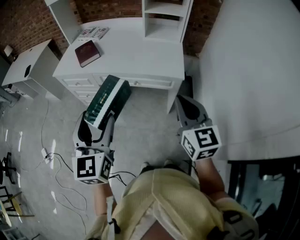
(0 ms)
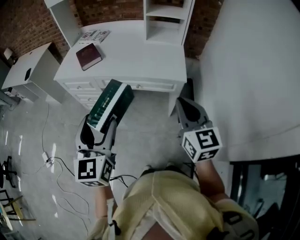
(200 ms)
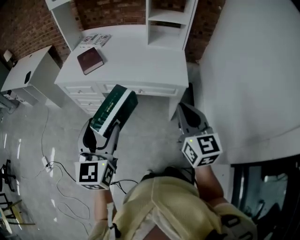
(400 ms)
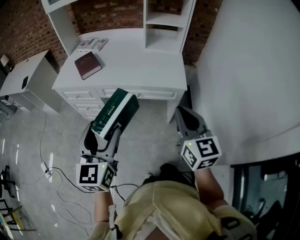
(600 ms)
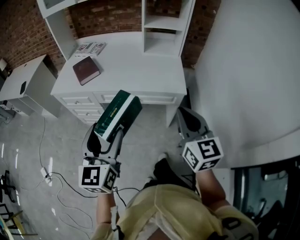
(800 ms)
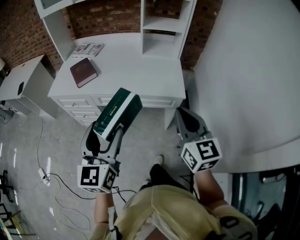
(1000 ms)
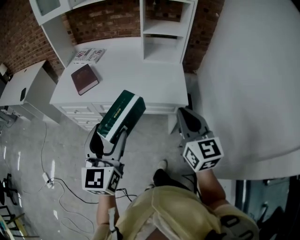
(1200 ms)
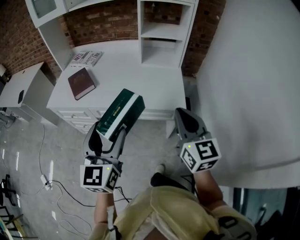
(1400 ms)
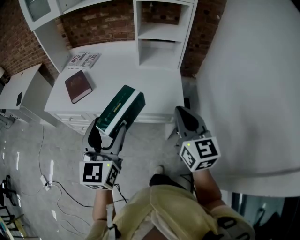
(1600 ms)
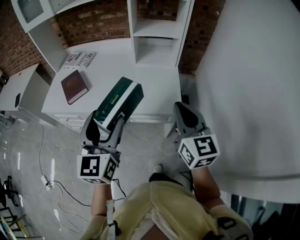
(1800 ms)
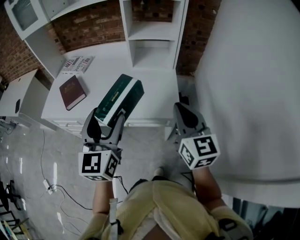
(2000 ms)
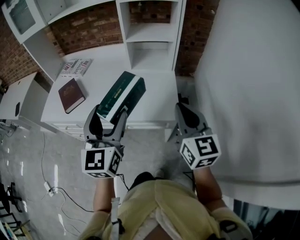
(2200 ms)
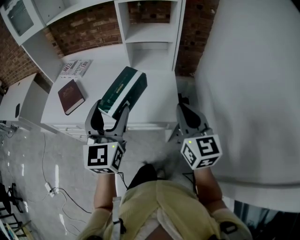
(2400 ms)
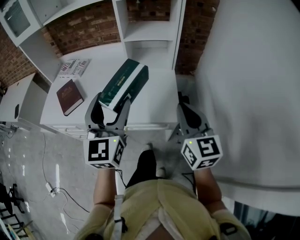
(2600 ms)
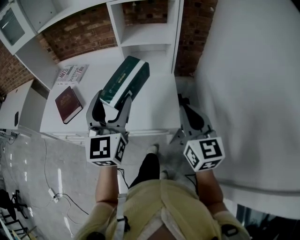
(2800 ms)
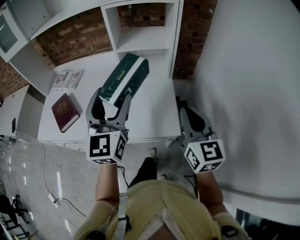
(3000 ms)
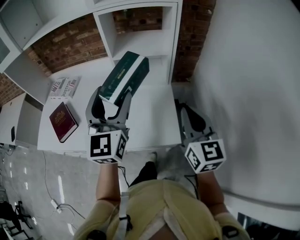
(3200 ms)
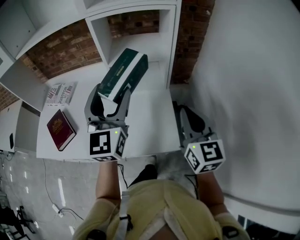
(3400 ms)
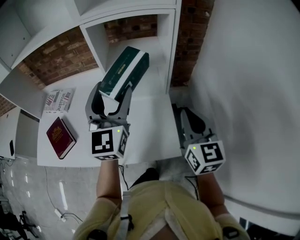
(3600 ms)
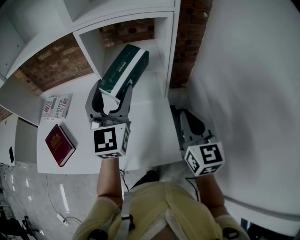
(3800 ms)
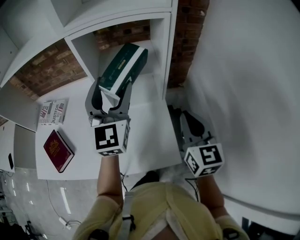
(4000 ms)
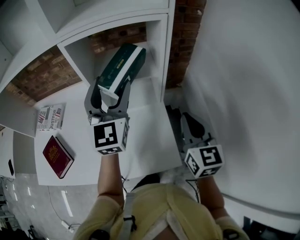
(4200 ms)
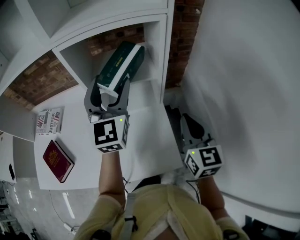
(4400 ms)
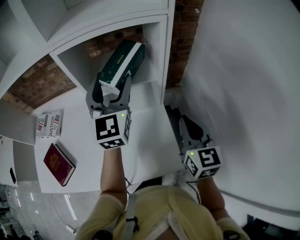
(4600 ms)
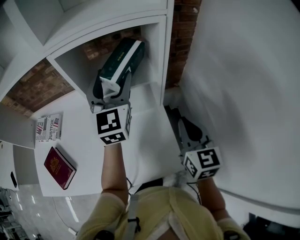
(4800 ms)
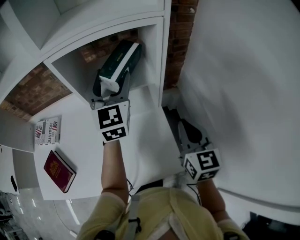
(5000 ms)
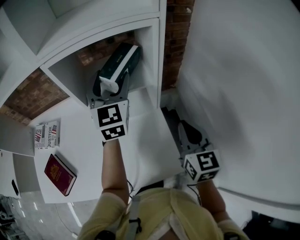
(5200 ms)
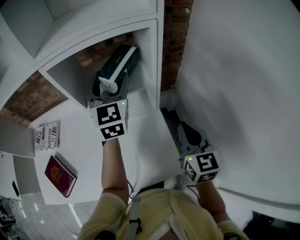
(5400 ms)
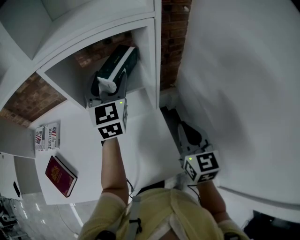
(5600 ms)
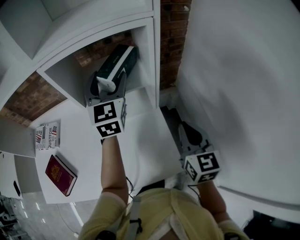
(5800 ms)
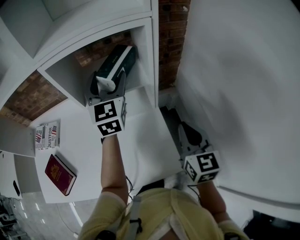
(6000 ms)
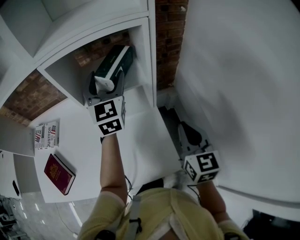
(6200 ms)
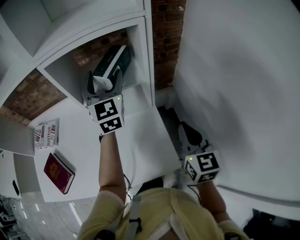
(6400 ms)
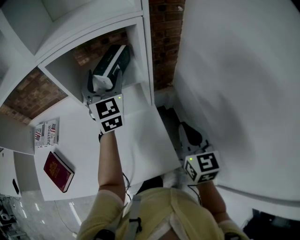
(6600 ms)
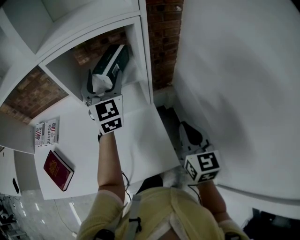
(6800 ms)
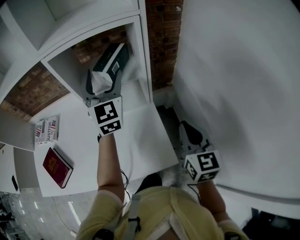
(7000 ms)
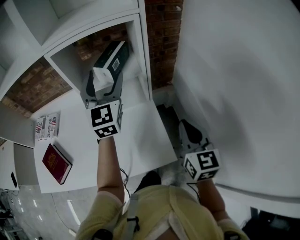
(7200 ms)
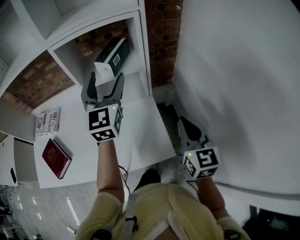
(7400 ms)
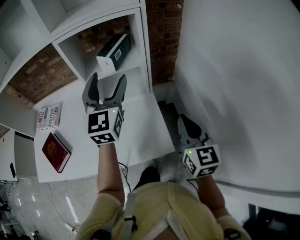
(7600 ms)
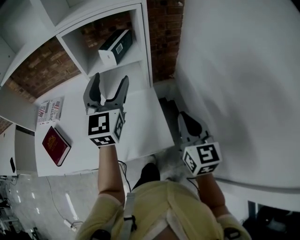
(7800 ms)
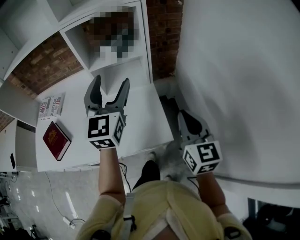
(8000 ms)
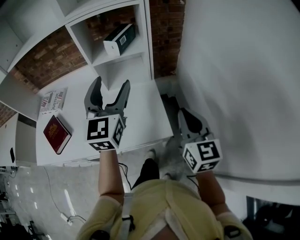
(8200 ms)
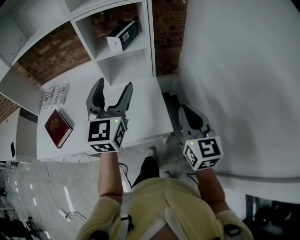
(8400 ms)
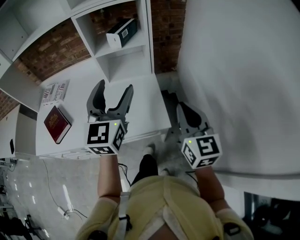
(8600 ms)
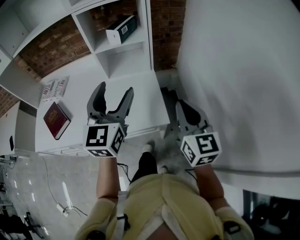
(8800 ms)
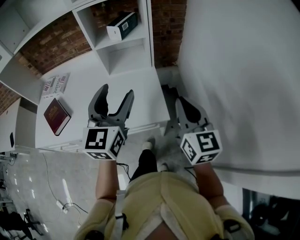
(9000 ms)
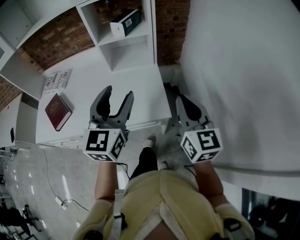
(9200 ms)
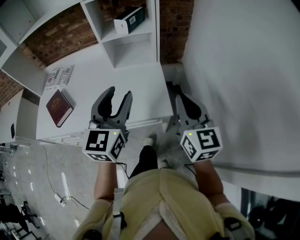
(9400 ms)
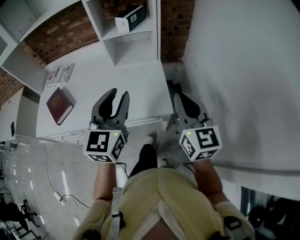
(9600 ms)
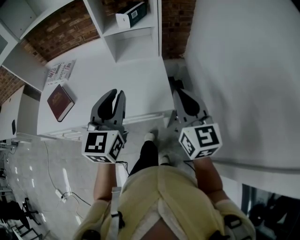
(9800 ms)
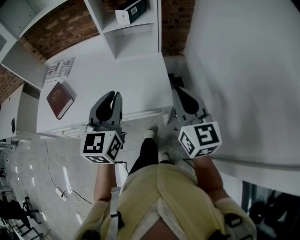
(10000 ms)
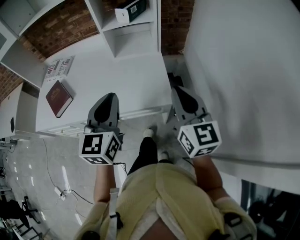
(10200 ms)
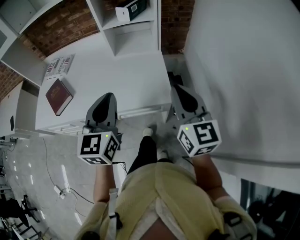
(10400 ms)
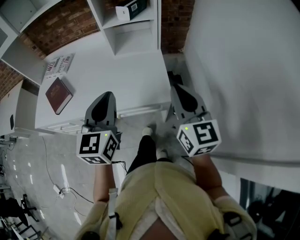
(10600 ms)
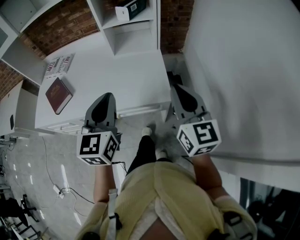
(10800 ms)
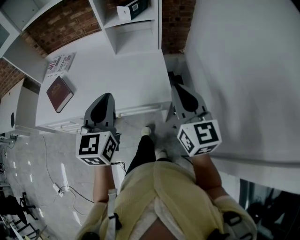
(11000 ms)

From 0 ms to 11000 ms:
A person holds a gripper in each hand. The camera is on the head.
From 0 ms to 1600 ms: Both grippers travel together forward, some 15 cm.
From 1600 ms to 3200 ms: The left gripper travels forward by roughly 30 cm. Meanwhile the right gripper heads forward and to the right, covering some 20 cm.
From 3200 ms to 4800 ms: The left gripper goes roughly 25 cm forward. The right gripper moves forward, some 15 cm.
From 4800 ms to 6200 ms: The grippers move only a little.
From 6200 ms to 7800 ms: The right gripper heads backward, covering approximately 10 cm. The left gripper goes approximately 20 cm backward.
From 7800 ms to 9400 ms: The left gripper shifts some 20 cm backward, and closes its fingers. Meanwhile the right gripper travels backward by some 10 cm.
From 9400 ms to 11000 ms: The left gripper travels backward by about 5 cm, and closes its fingers.

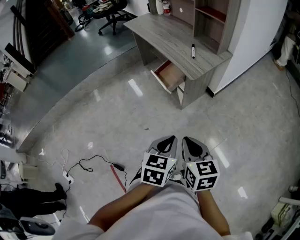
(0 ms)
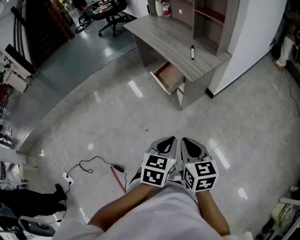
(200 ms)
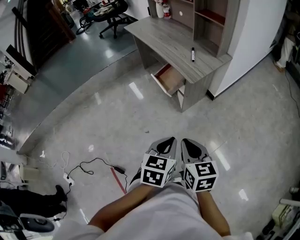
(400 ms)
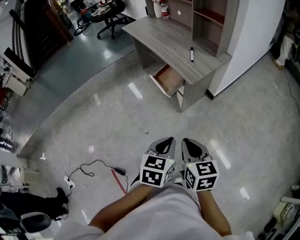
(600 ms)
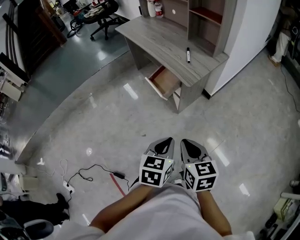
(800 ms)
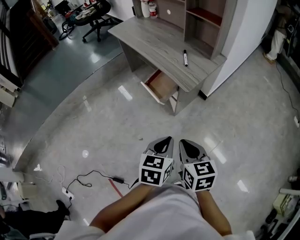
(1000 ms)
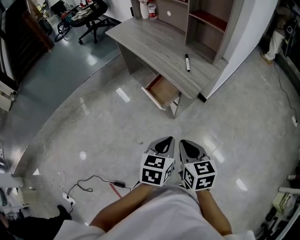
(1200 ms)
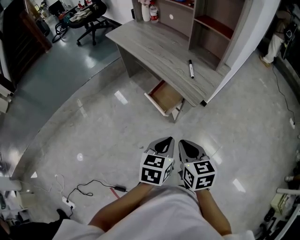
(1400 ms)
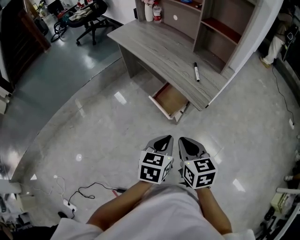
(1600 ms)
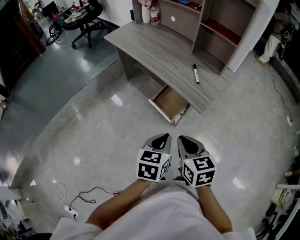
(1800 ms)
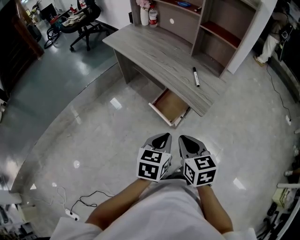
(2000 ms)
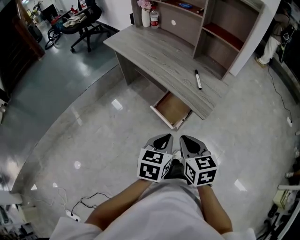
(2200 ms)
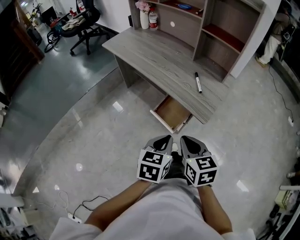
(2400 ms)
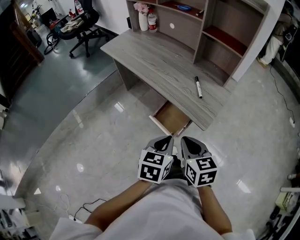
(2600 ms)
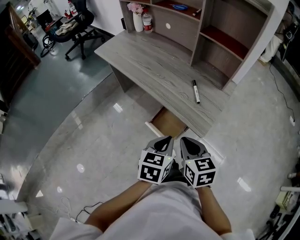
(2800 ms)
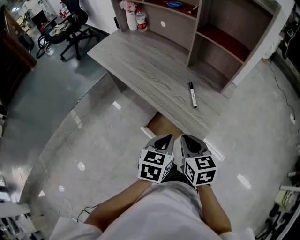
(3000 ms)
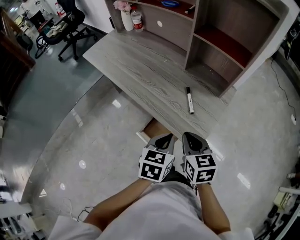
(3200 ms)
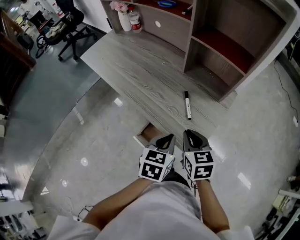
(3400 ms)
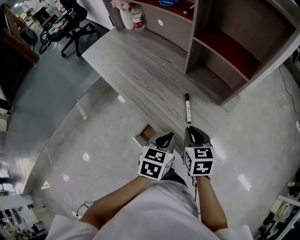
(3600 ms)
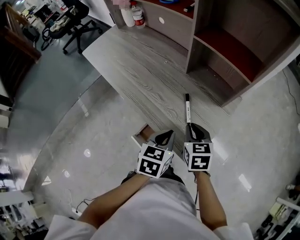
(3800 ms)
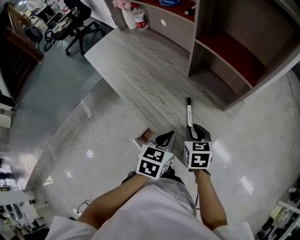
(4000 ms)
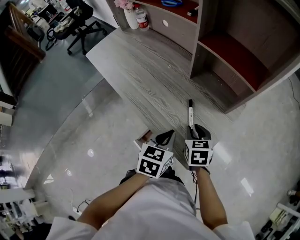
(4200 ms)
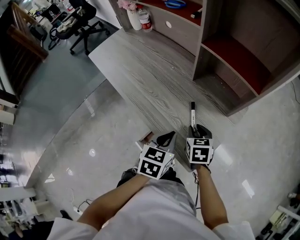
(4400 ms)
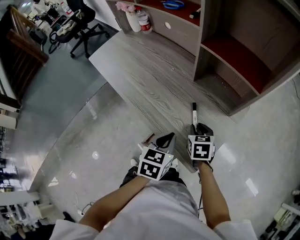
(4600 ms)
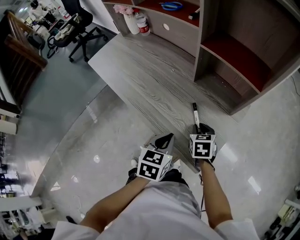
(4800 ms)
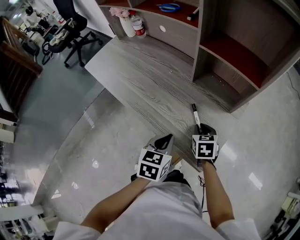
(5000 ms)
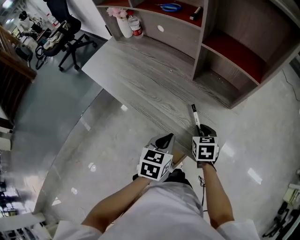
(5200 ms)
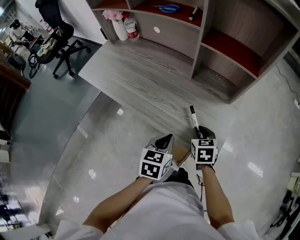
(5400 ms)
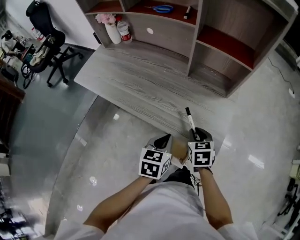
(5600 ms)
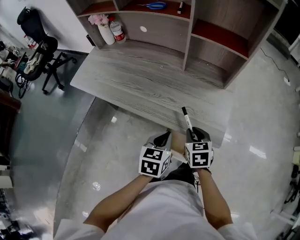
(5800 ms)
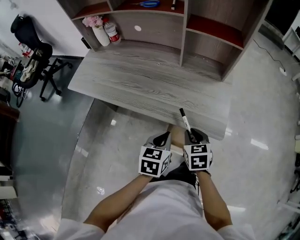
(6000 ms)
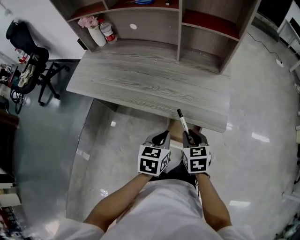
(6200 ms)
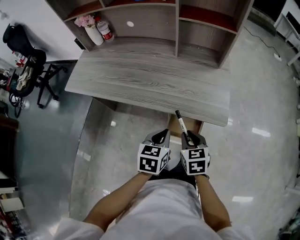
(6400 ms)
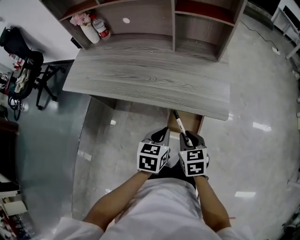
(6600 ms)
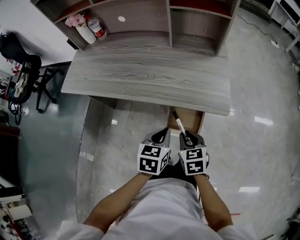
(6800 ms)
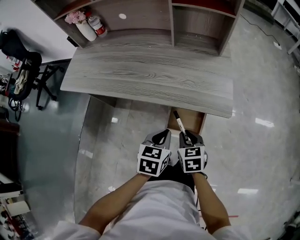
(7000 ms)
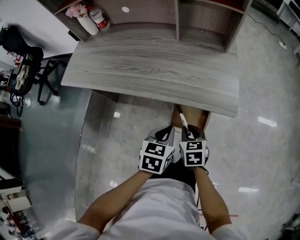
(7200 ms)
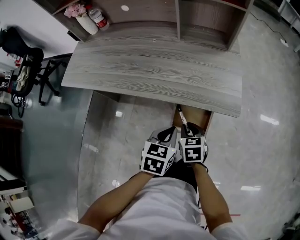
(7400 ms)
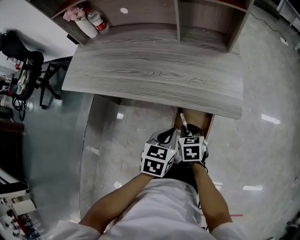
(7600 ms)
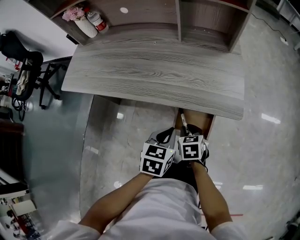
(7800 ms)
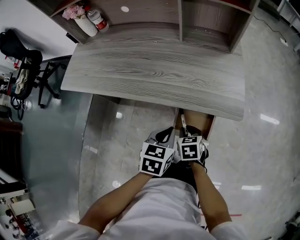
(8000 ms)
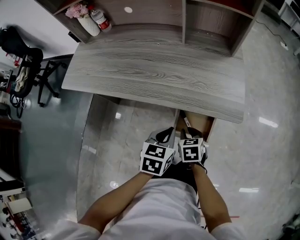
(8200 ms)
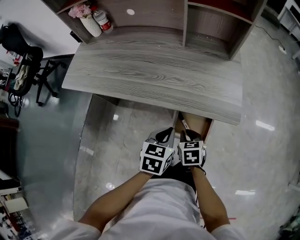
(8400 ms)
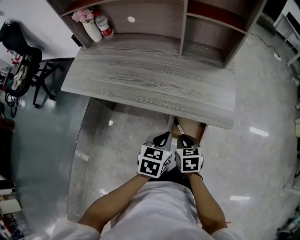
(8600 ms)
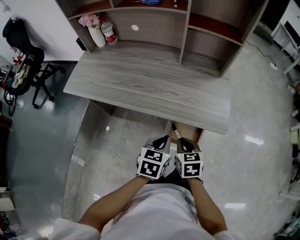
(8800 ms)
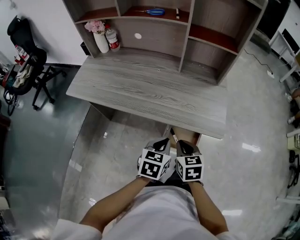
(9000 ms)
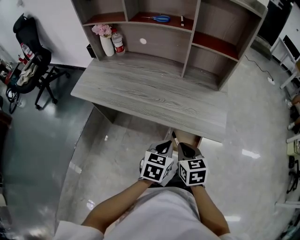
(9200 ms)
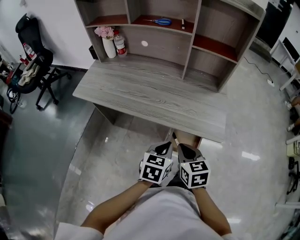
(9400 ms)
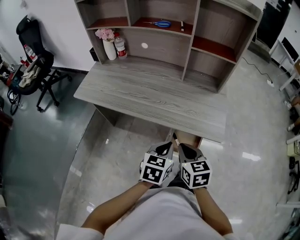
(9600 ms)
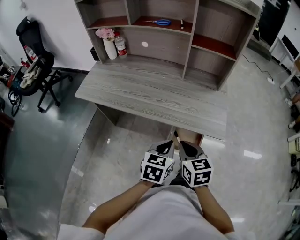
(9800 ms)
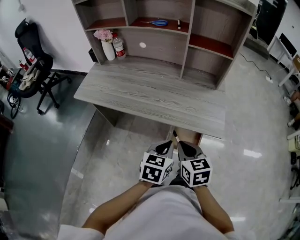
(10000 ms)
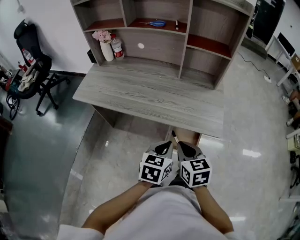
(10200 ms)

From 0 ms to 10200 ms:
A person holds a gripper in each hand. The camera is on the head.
From 0 ms to 1400 ms: The left gripper is displaced forward by some 15 cm, while the right gripper is displaced forward and to the left by about 20 cm.
From 1400 ms to 3000 ms: The two grippers go approximately 25 cm forward.
From 3000 ms to 4400 ms: The left gripper travels forward by about 15 cm, while the right gripper is displaced forward and downward by about 20 cm.
From 4400 ms to 5800 ms: The right gripper goes roughly 15 cm backward and to the left; the left gripper travels to the left and backward by approximately 10 cm.
From 5800 ms to 7200 ms: The right gripper shifts roughly 15 cm backward and downward; the left gripper heads downward and backward, covering about 10 cm.
From 7200 ms to 8800 ms: The right gripper shifts about 5 cm upward.
From 8800 ms to 10200 ms: The left gripper shifts some 5 cm upward. Meanwhile the right gripper heads upward, covering some 10 cm.

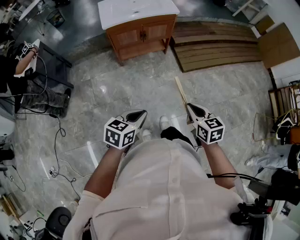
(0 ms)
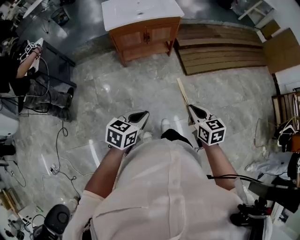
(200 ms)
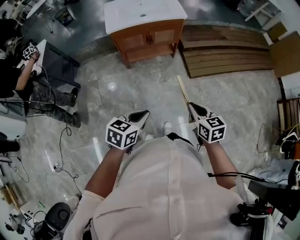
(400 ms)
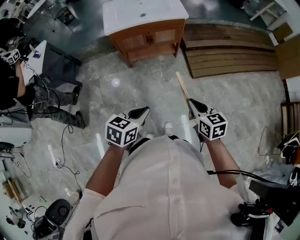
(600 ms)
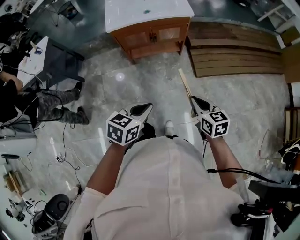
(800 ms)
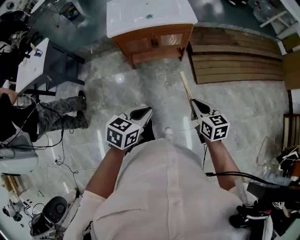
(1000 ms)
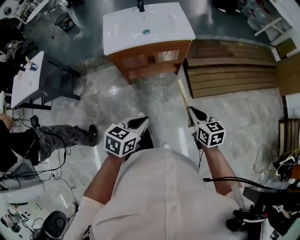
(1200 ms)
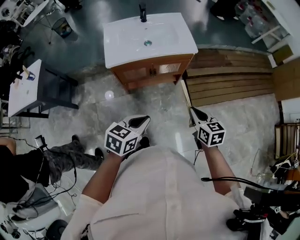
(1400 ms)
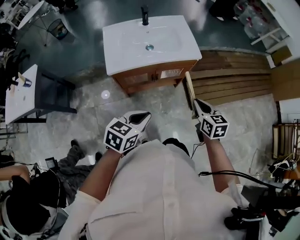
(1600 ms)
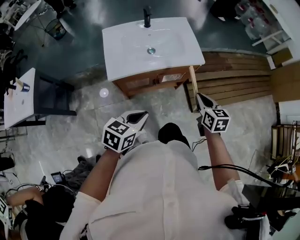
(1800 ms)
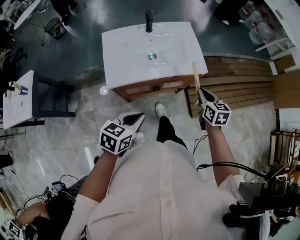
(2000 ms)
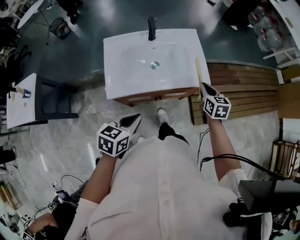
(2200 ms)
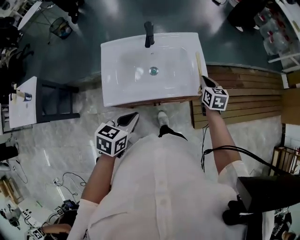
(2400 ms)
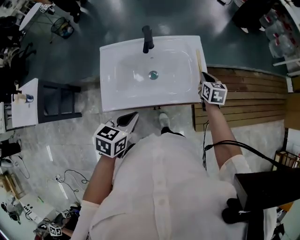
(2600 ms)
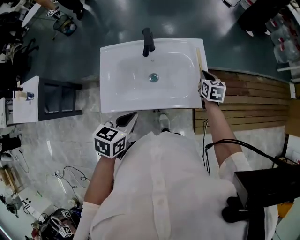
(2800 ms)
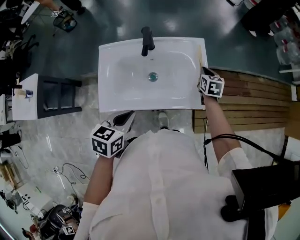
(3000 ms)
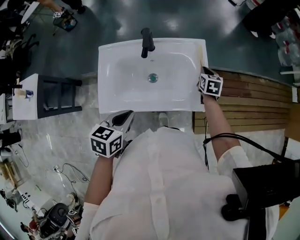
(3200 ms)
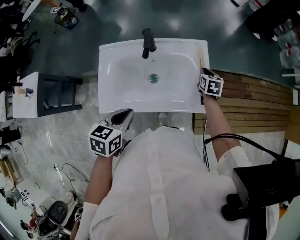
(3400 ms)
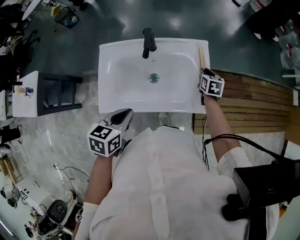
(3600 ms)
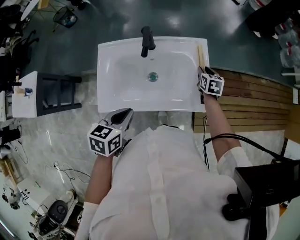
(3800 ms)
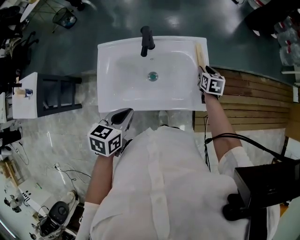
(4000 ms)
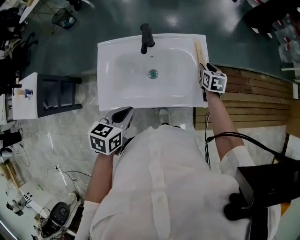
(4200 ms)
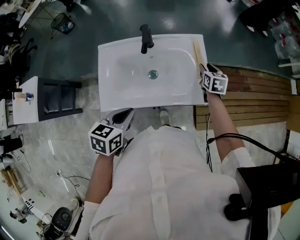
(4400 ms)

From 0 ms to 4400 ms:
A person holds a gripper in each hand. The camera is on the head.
From 0 ms to 1400 ms: The two grippers go about 35 cm forward.
From 1400 ms to 3000 ms: The left gripper travels forward by some 35 cm, while the right gripper goes about 60 cm forward.
From 3000 ms to 4400 ms: The right gripper opens.
